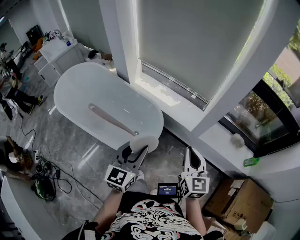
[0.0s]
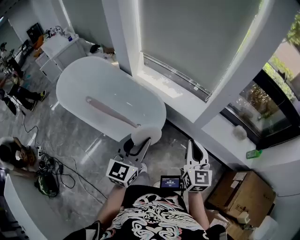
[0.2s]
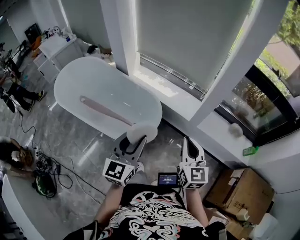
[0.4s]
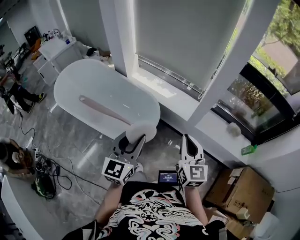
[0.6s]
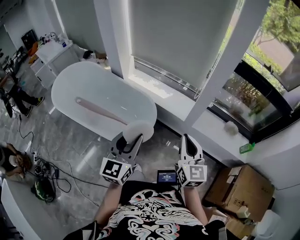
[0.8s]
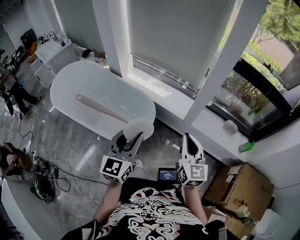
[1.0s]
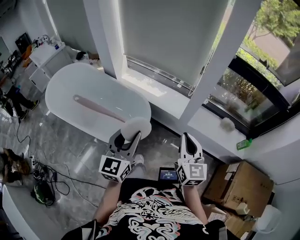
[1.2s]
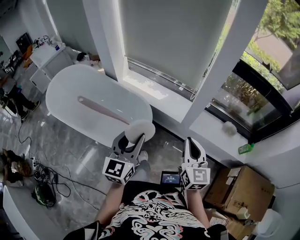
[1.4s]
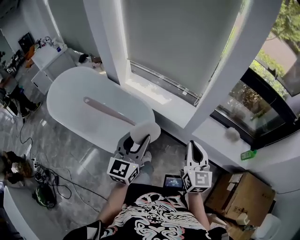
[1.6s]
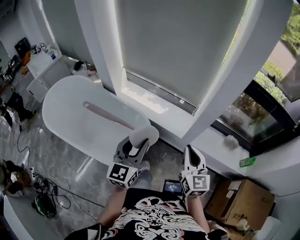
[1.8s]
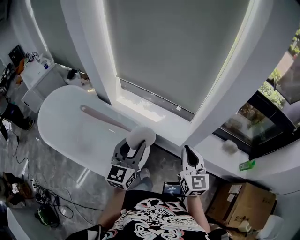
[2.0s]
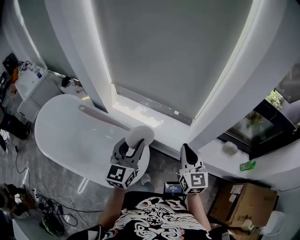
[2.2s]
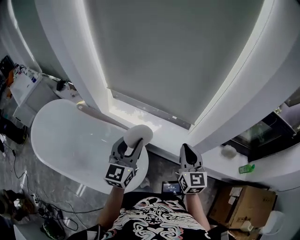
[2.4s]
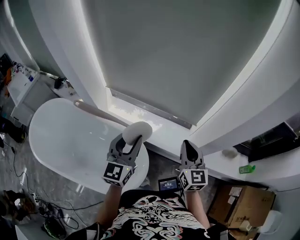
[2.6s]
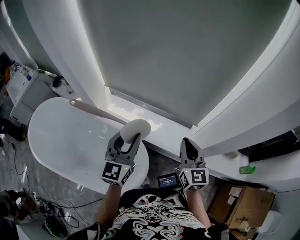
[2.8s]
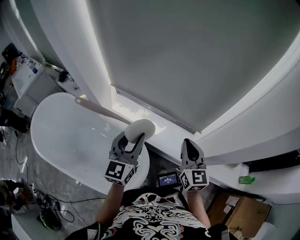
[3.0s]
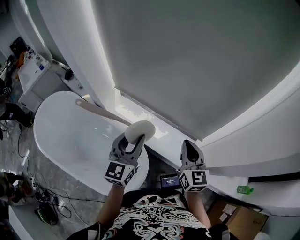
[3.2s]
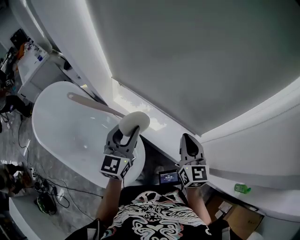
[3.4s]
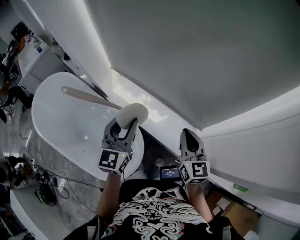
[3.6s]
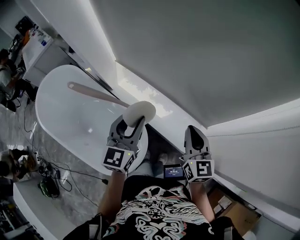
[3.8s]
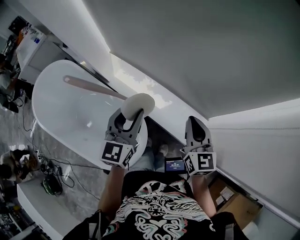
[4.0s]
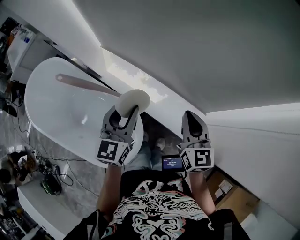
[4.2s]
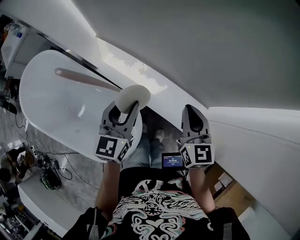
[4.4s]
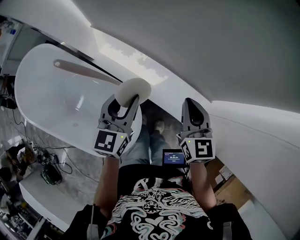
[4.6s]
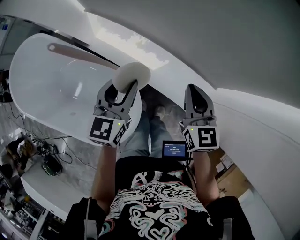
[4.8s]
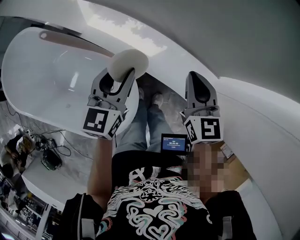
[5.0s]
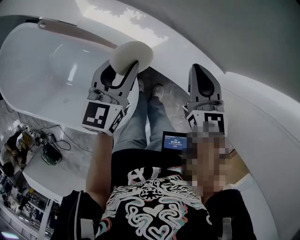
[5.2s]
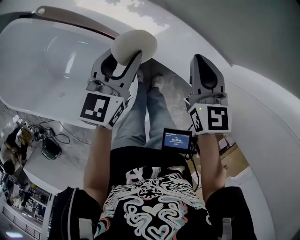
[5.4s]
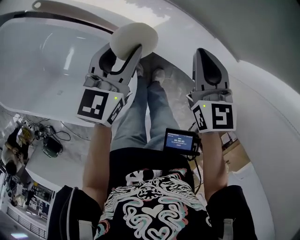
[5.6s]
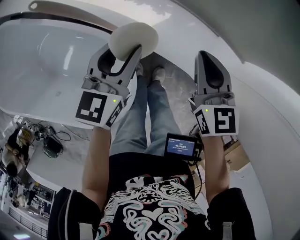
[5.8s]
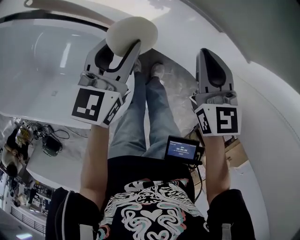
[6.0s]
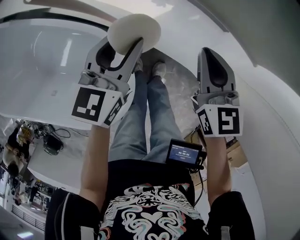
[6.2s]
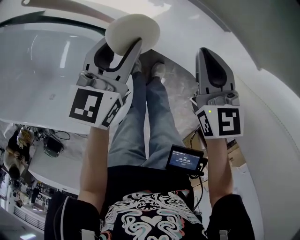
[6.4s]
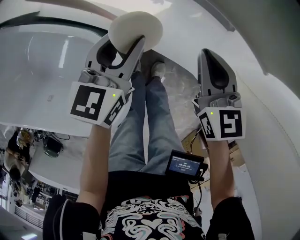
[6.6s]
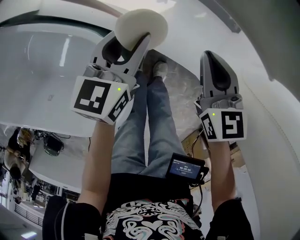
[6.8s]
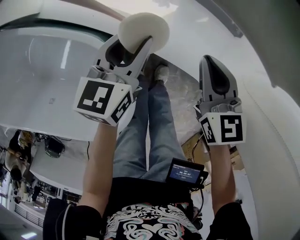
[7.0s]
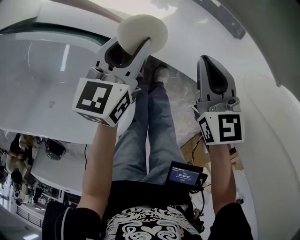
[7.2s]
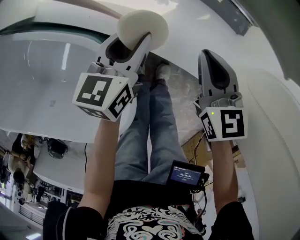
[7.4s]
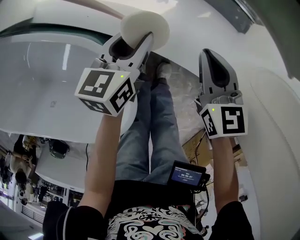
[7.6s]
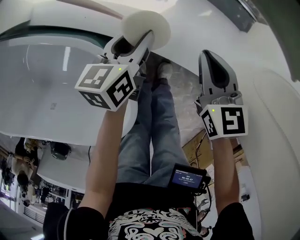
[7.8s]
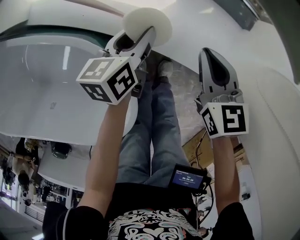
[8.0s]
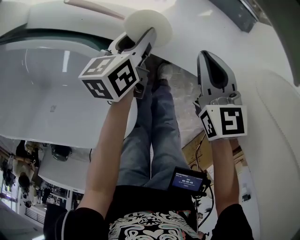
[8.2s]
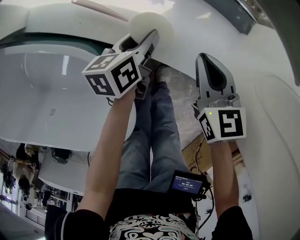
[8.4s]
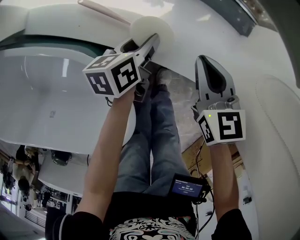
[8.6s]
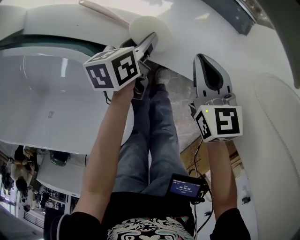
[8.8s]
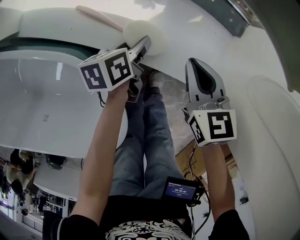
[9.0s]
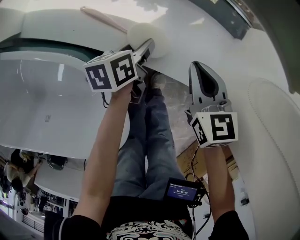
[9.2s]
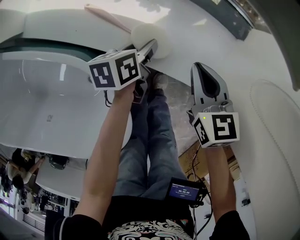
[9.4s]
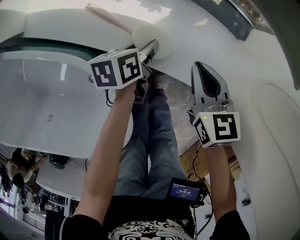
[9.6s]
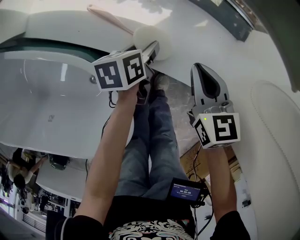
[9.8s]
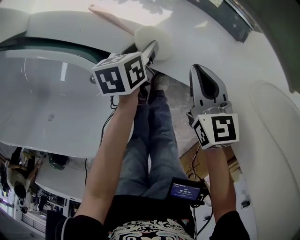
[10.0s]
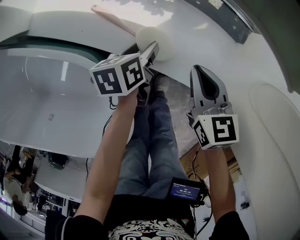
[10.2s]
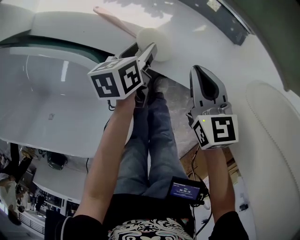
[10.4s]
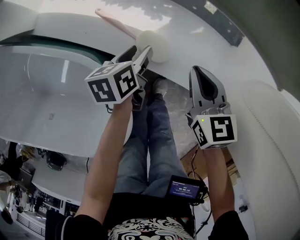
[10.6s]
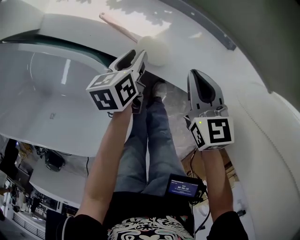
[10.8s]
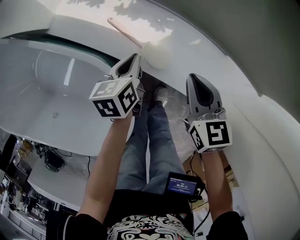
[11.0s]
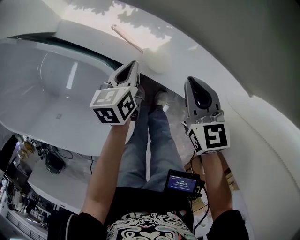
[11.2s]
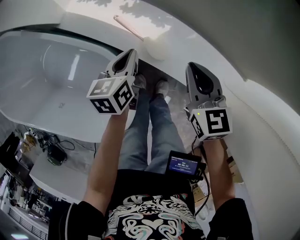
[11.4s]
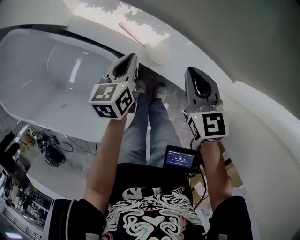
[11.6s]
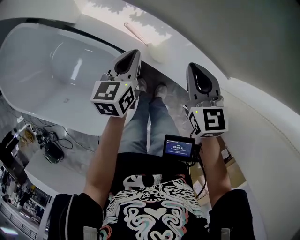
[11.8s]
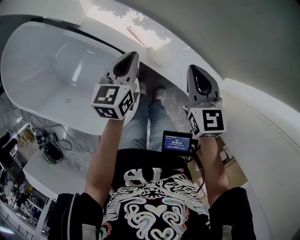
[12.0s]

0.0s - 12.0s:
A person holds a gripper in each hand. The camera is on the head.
0.0s - 1.6s: The left gripper moves to the right and forward, roughly 10 cm. Meanwhile the right gripper travels to the right by roughly 5 cm, and reaches some 5 cm backward, then returns.
1.6s - 3.0s: The two grippers go about 40 cm forward.
3.0s - 4.4s: The left gripper travels downward and forward by roughly 15 cm, while the right gripper moves forward and downward, some 15 cm.
4.4s - 6.0s: The two grippers go approximately 25 cm downward.
6.0s - 7.6s: The grippers both shift downward by roughly 15 cm.
7.6s - 9.0s: The left gripper goes roughly 10 cm downward, and swivels roughly 30 degrees, while the right gripper moves downward, some 5 cm.
9.0s - 10.4s: The grippers move only a little.
10.4s - 12.0s: The two grippers go approximately 30 cm upward. The left gripper rotates approximately 40 degrees, and closes.

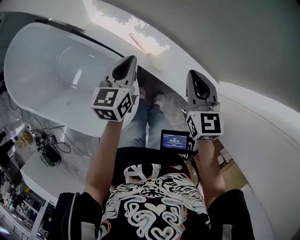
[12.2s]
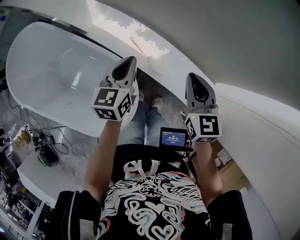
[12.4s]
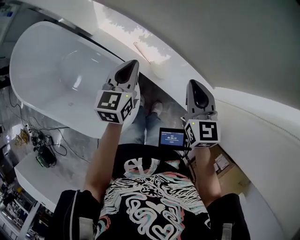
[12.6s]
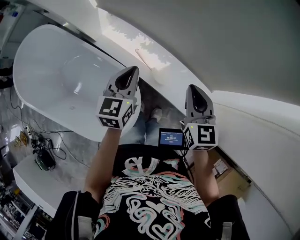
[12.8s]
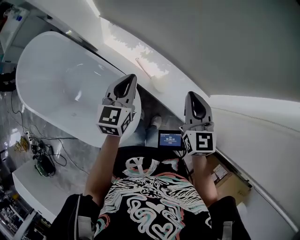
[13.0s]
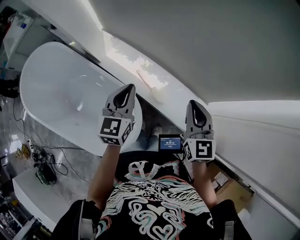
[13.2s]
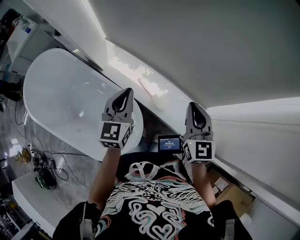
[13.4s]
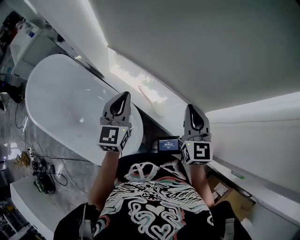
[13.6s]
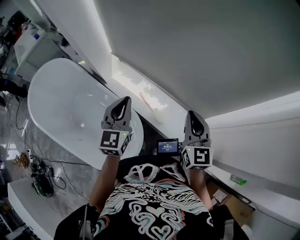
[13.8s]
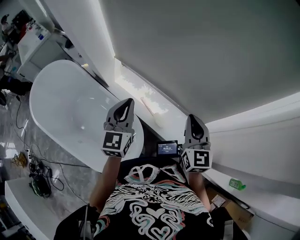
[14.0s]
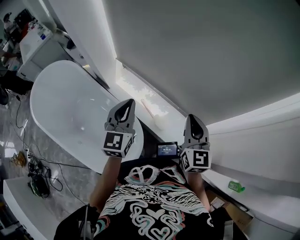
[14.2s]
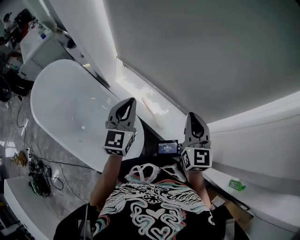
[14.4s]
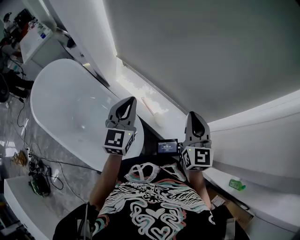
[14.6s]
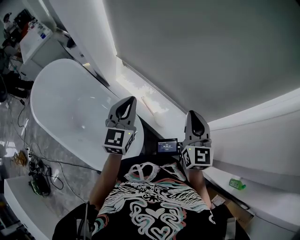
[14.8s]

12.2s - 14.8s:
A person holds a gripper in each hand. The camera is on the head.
12.2s - 13.4s: The grippers both shift upward by about 20 cm.
13.4s - 14.8s: The left gripper shifts about 5 cm upward.

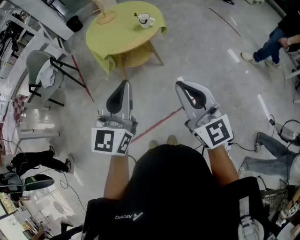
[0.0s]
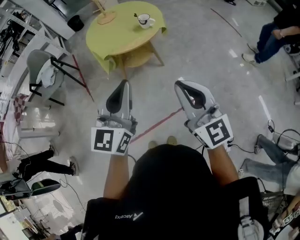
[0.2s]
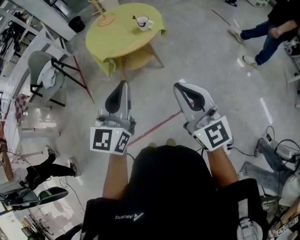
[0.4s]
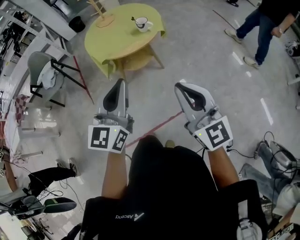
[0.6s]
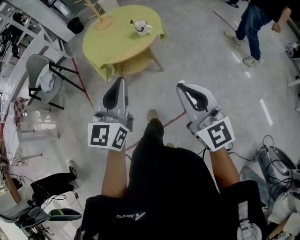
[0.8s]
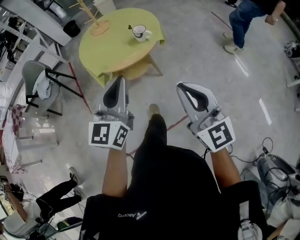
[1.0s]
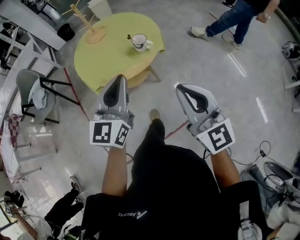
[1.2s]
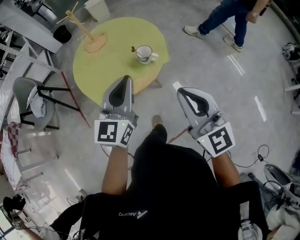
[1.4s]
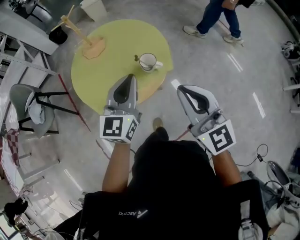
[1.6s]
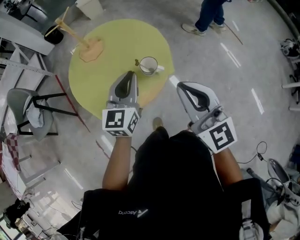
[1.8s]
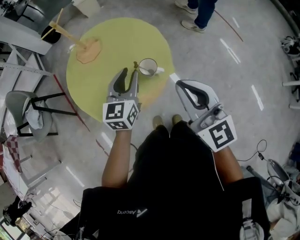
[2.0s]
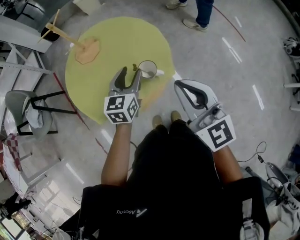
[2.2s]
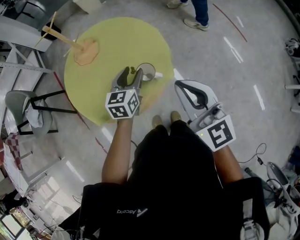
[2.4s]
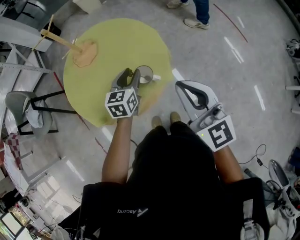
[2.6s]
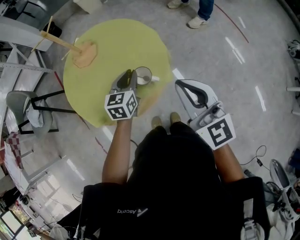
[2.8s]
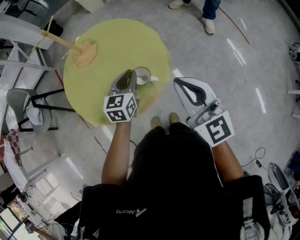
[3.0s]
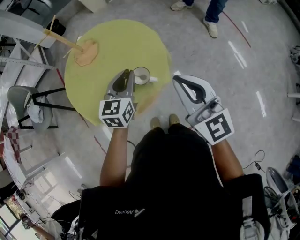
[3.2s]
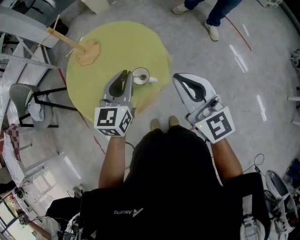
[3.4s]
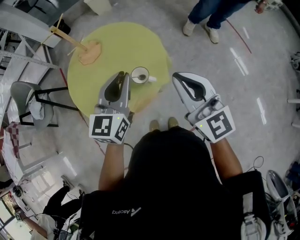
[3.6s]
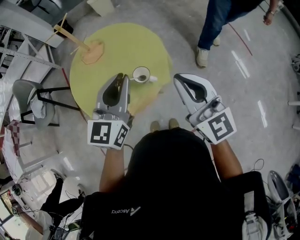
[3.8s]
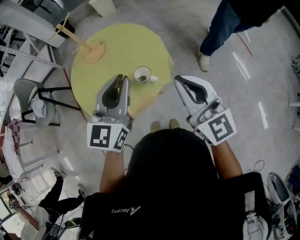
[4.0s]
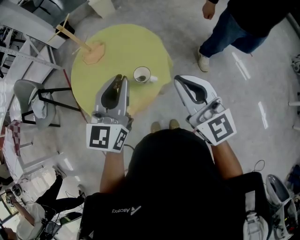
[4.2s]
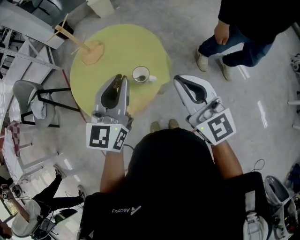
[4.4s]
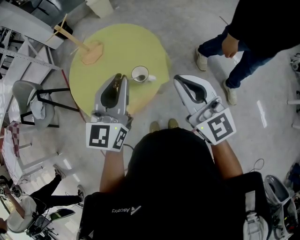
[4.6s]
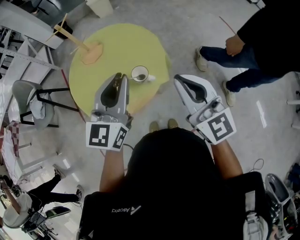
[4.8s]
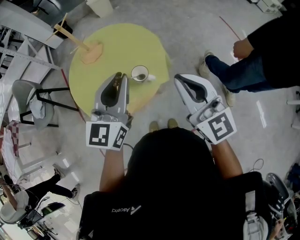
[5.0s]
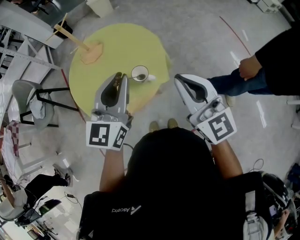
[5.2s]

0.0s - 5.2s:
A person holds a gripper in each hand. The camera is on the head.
0.0s - 1.8s: The pair of grippers is taken forward, about 50 cm.
1.8s - 3.4s: The two grippers go approximately 10 cm forward and to the right. The left gripper travels downward and back again, roughly 15 cm each way, and opens, then closes once more.
3.4s - 5.2s: The left gripper travels upward and backward by roughly 10 cm.

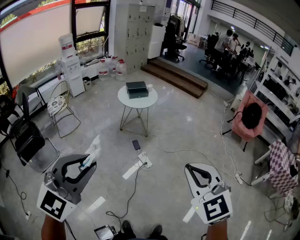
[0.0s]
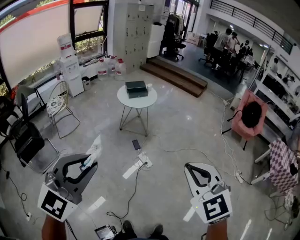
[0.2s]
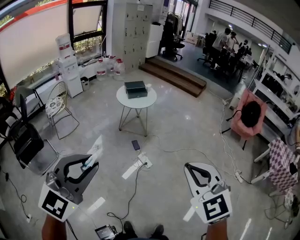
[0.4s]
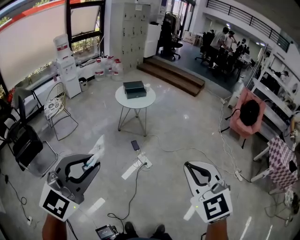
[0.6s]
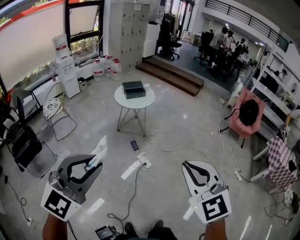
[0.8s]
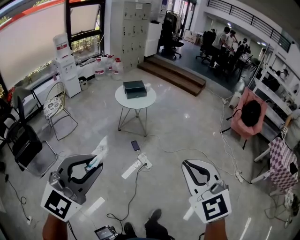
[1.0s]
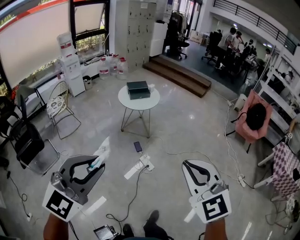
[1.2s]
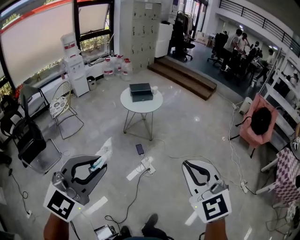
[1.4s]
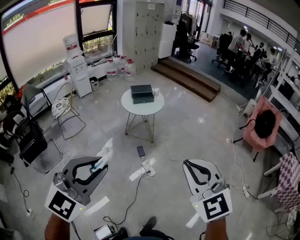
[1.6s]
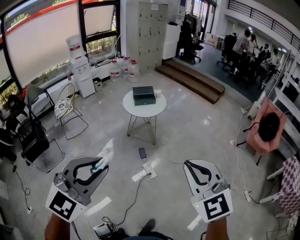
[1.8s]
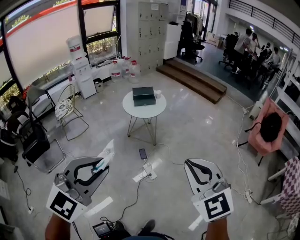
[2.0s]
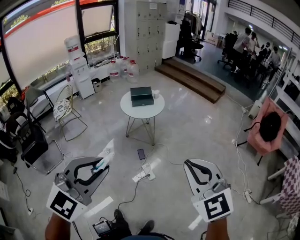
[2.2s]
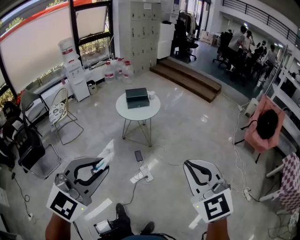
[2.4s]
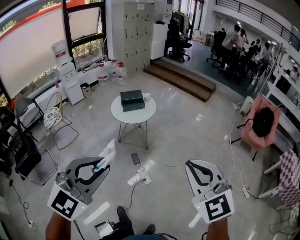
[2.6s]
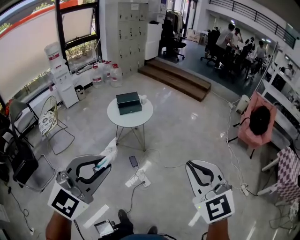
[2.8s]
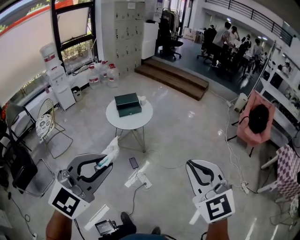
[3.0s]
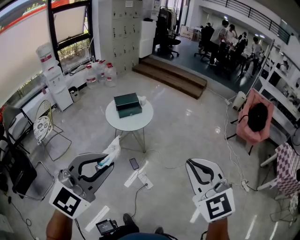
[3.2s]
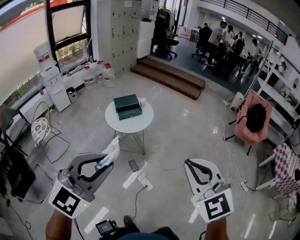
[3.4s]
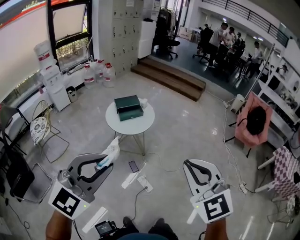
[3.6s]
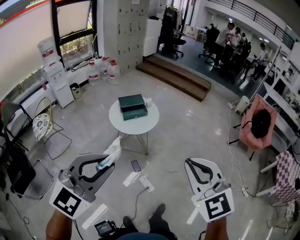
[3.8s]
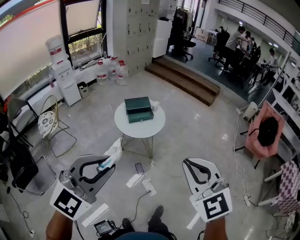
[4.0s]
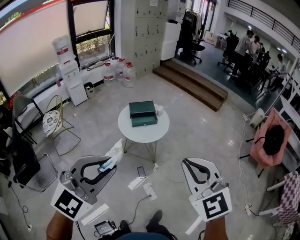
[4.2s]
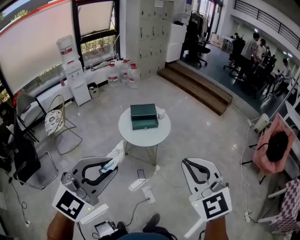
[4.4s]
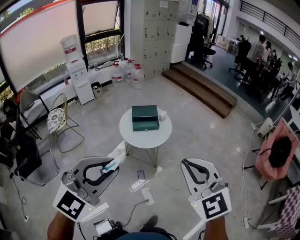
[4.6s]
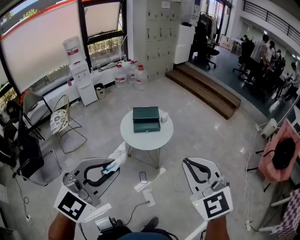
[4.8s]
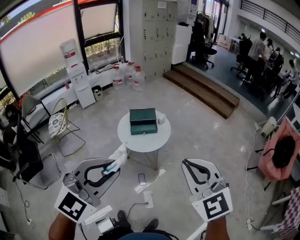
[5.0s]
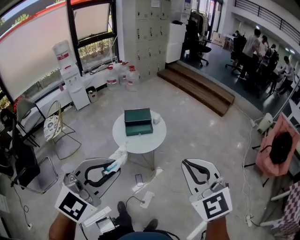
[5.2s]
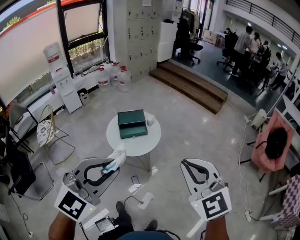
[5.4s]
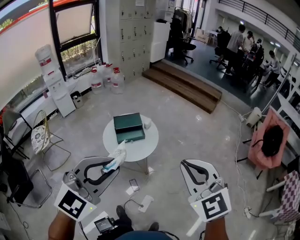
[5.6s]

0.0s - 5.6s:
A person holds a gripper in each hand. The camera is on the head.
0.0s - 1.4s: The two grippers go approximately 15 cm forward.
1.4s - 2.8s: The left gripper shifts roughly 20 cm forward, while the right gripper goes roughly 20 cm forward and to the right.
2.8s - 4.2s: The grippers both shift forward and to the left by about 25 cm.
4.2s - 5.6s: The grippers both shift forward by some 20 cm.
